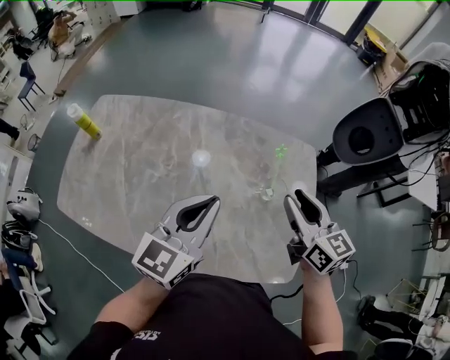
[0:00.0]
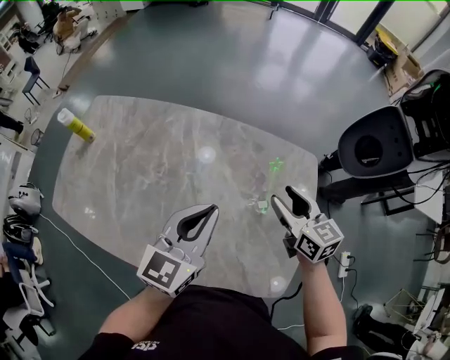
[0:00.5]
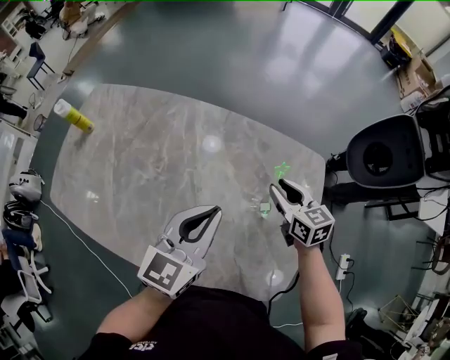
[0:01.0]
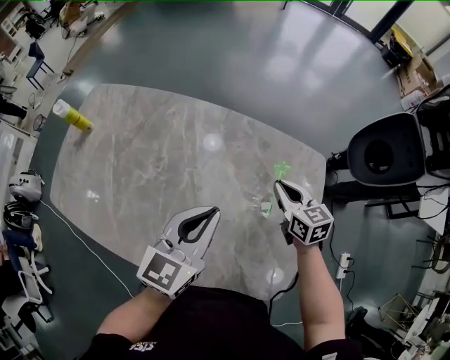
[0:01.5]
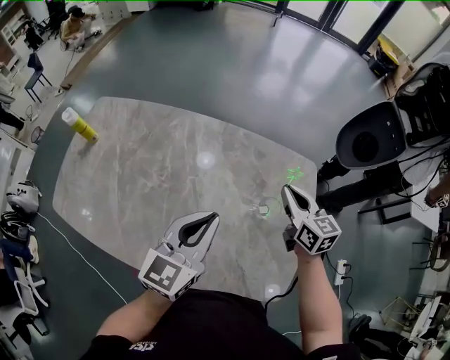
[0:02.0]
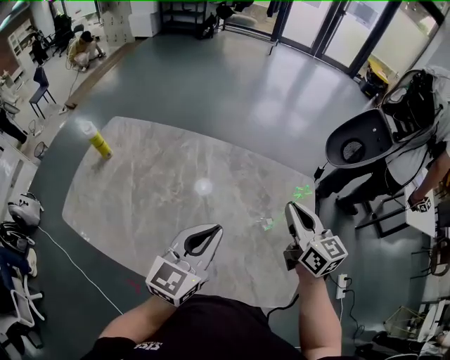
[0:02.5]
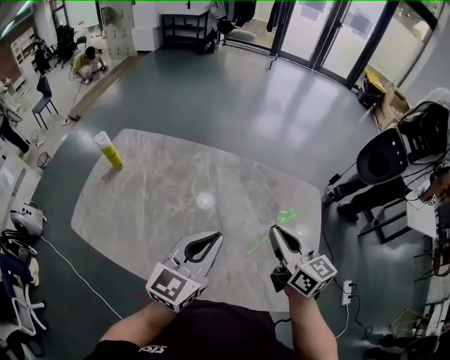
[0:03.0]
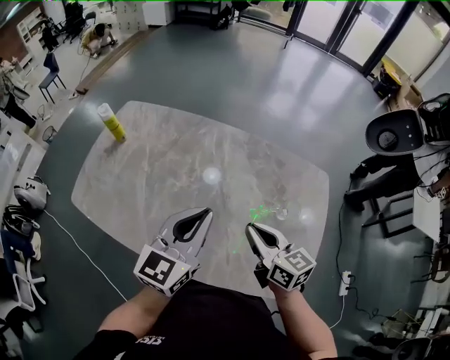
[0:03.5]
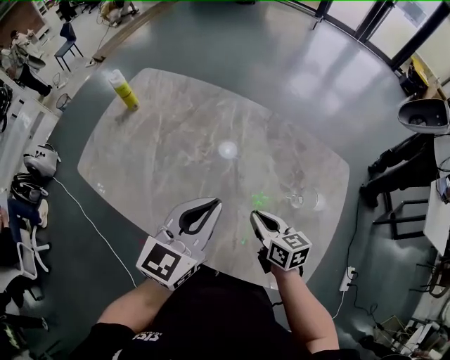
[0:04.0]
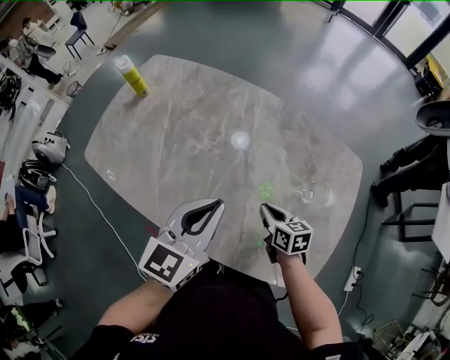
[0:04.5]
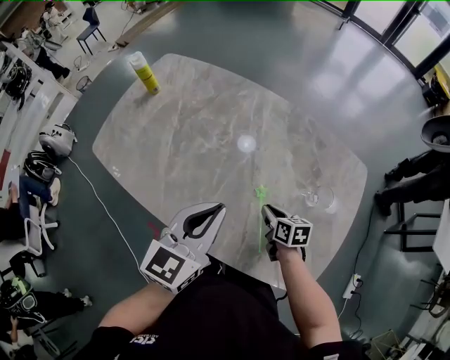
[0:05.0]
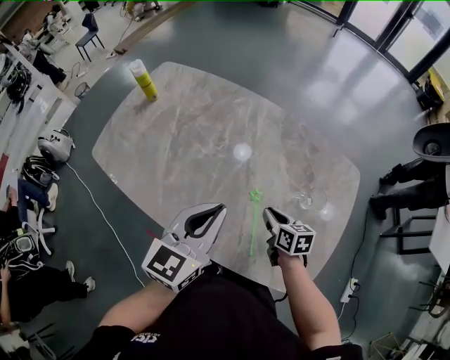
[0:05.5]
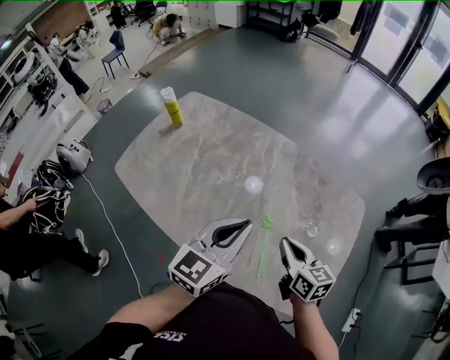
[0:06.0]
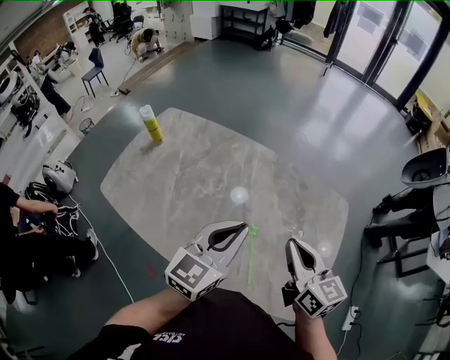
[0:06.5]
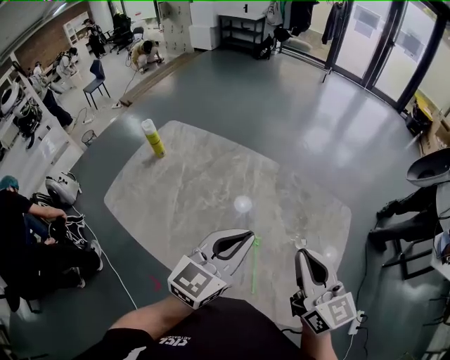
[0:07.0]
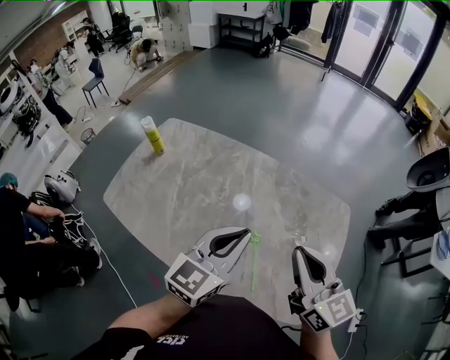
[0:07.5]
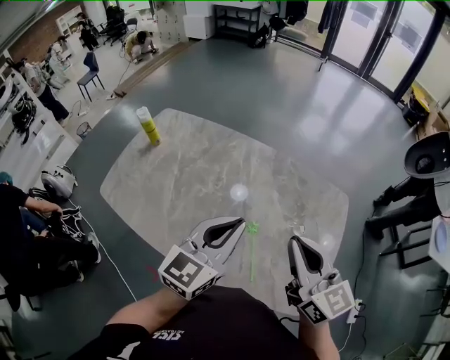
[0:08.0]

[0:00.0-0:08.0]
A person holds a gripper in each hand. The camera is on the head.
0:00.0 to 0:02.0: The right gripper heads forward and downward, covering some 15 cm, and closes.
0:02.0 to 0:04.0: The left gripper heads to the left, covering approximately 10 cm; the right gripper goes about 25 cm to the left and backward, and changes its angle by some 20 degrees.
0:04.0 to 0:06.0: The right gripper shifts some 5 cm upward.
0:06.0 to 0:08.0: The right gripper shifts roughly 20 cm upward, and changes its angle by approximately 30 degrees.

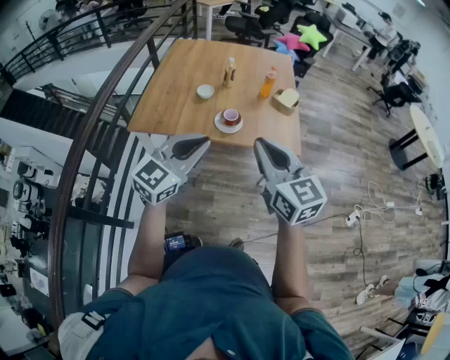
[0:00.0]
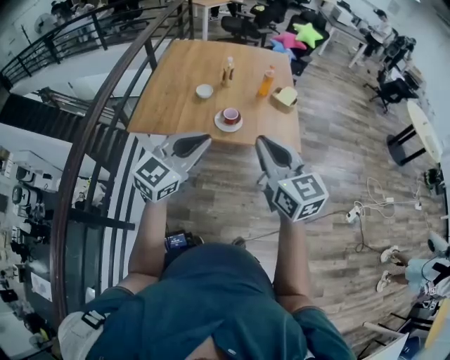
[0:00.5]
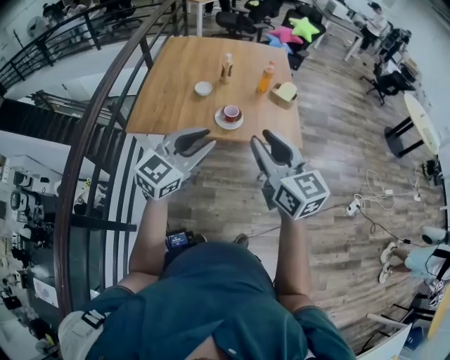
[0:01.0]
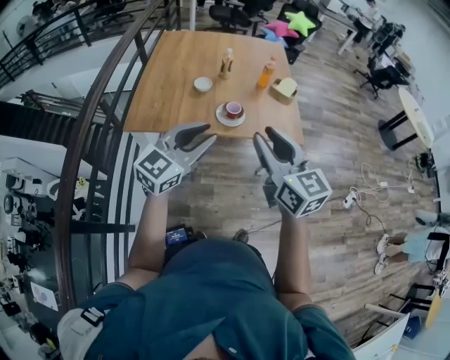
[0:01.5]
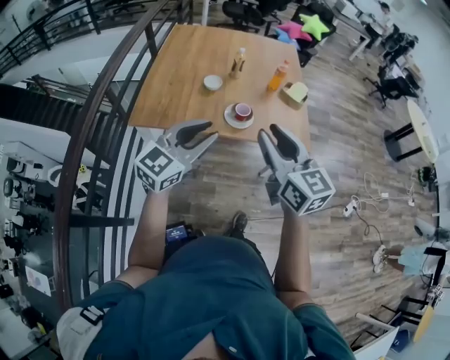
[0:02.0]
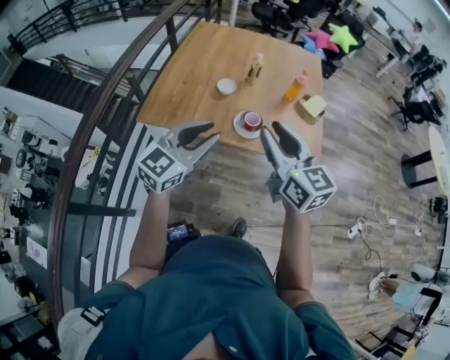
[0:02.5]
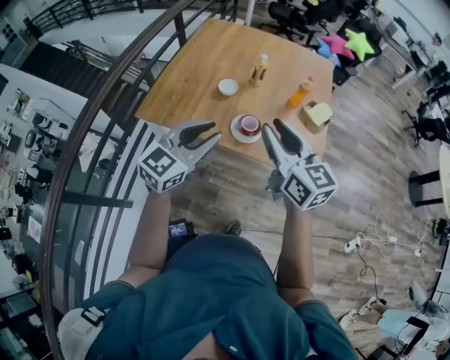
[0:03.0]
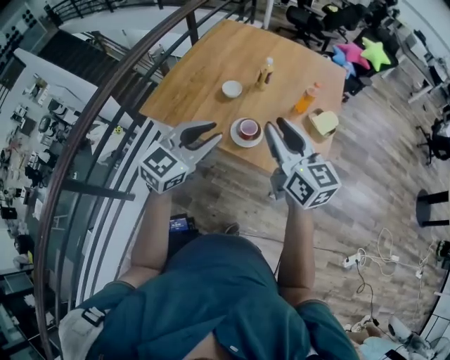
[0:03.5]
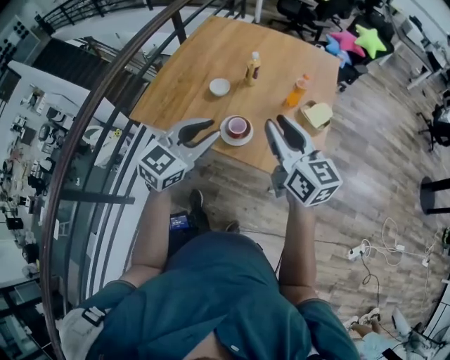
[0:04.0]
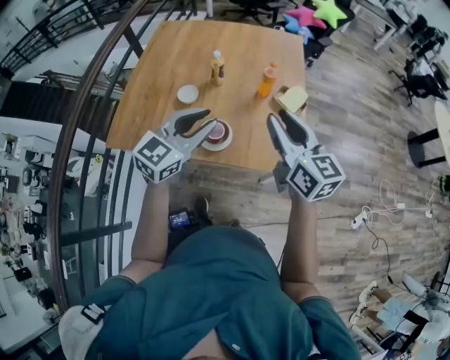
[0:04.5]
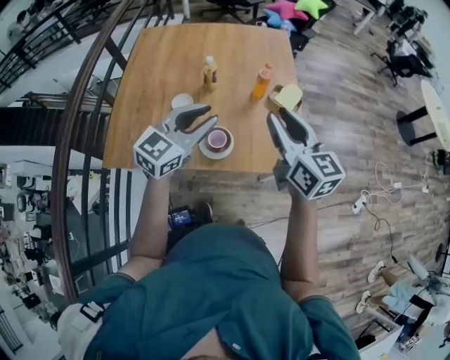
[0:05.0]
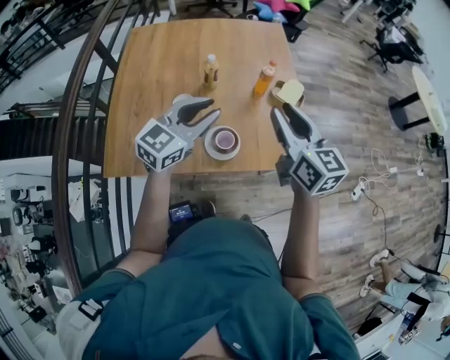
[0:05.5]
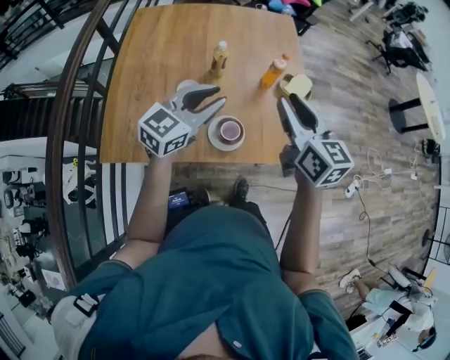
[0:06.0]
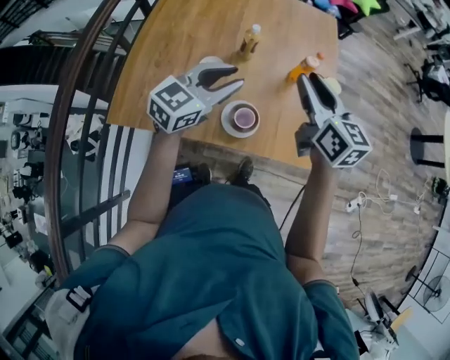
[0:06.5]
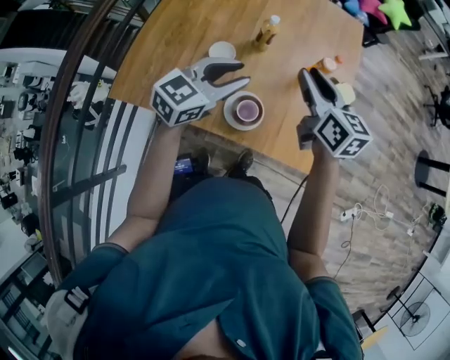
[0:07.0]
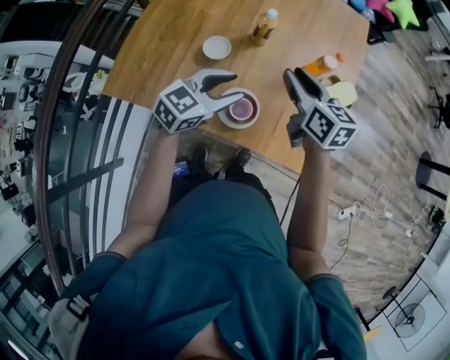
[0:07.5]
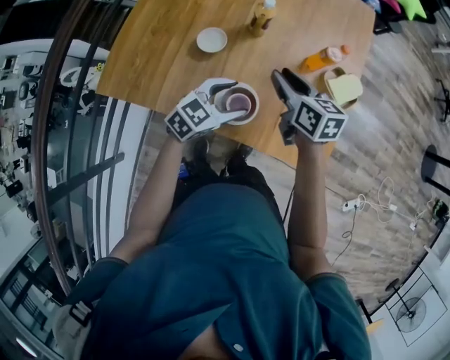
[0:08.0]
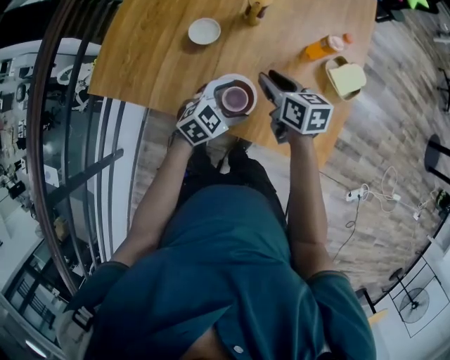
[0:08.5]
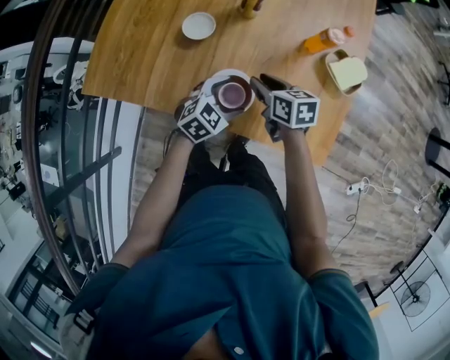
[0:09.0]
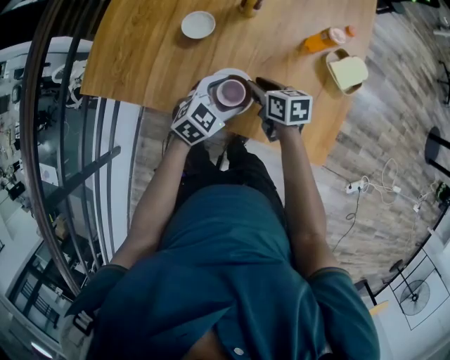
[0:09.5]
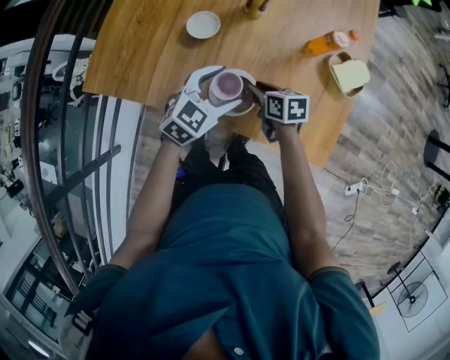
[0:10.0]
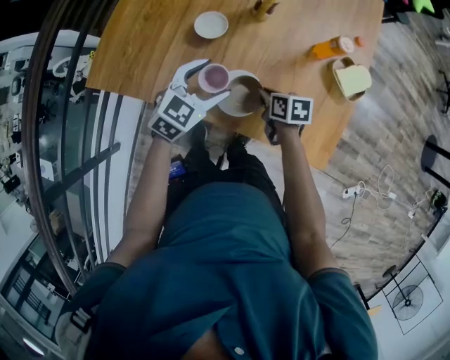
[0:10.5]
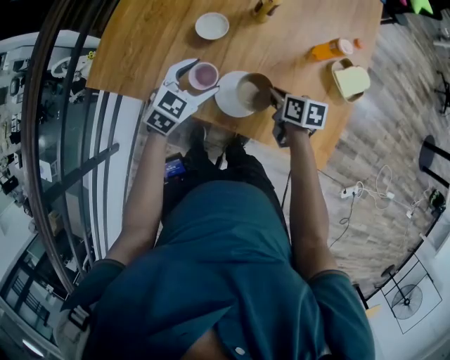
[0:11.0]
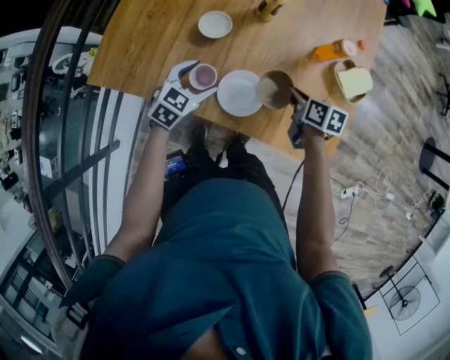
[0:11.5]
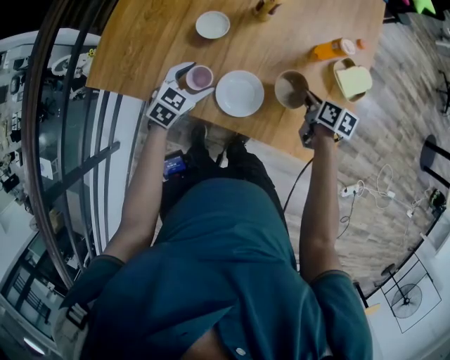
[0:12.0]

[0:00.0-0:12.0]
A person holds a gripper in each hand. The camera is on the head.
0:00.0 to 0:02.0: The left gripper is displaced to the left and forward by roughly 10 cm, while the right gripper moves to the left, roughly 10 cm, and opens up.
0:02.0 to 0:04.0: Both grippers move forward and to the right, about 20 cm.
0:04.0 to 0:06.0: The right gripper moves about 15 cm, and rotates approximately 30 degrees. The left gripper changes place by roughly 20 cm, and swivels approximately 30 degrees.
0:06.0 to 0:08.0: The right gripper is displaced downward and forward by some 25 cm, and rotates about 30 degrees. The left gripper travels downward by about 20 cm, swivels approximately 20 degrees, and opens.
0:08.0 to 0:10.0: The left gripper moves about 10 cm downward and comes back; the right gripper goes about 20 cm downward, and rotates about 20 degrees.
0:10.0 to 0:12.0: The left gripper heads to the left and downward, covering some 15 cm. The right gripper heads to the right, covering roughly 15 cm, and turns by approximately 20 degrees.

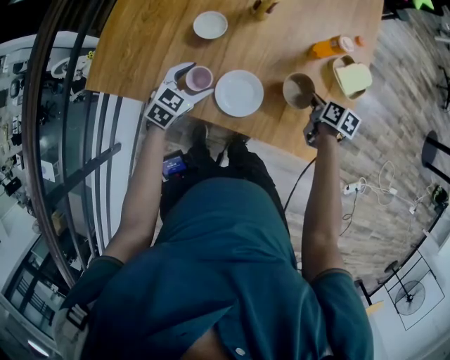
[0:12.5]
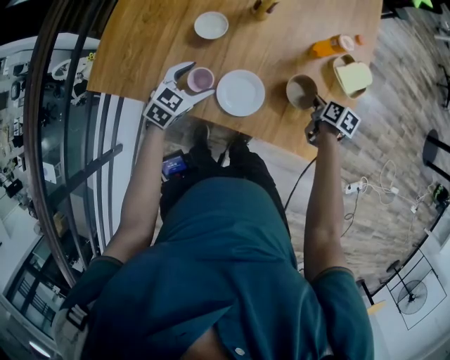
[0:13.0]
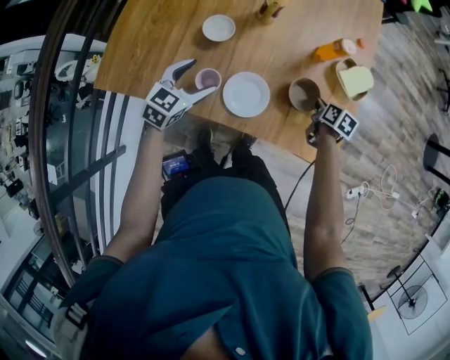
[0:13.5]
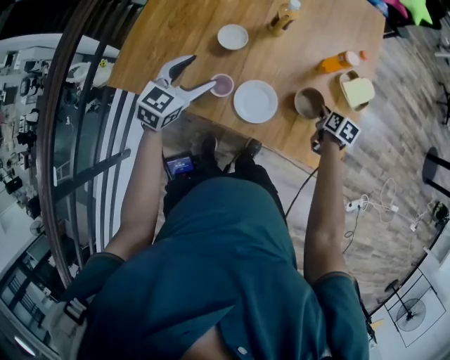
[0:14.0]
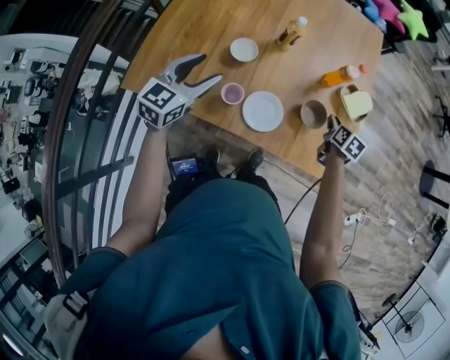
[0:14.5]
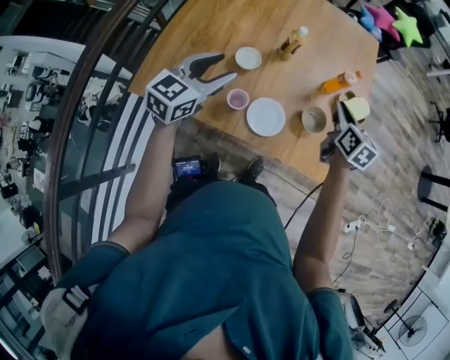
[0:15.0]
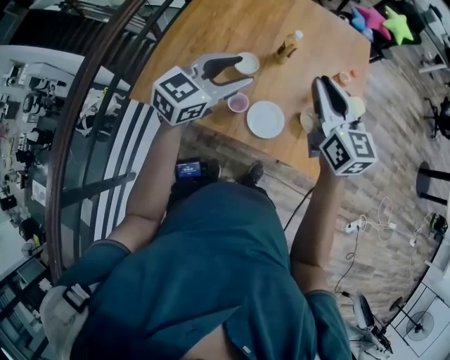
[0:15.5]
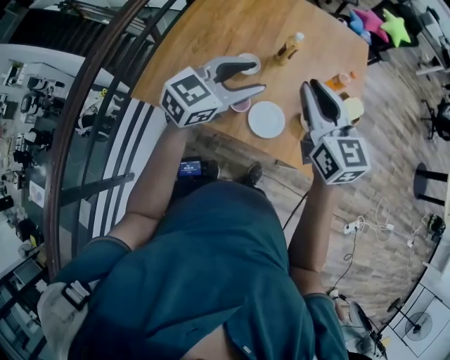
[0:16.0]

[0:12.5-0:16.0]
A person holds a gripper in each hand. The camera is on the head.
0:12.5 to 0:14.5: The right gripper heads upward, covering some 5 cm. Meanwhile the left gripper is displaced upward by approximately 20 cm, and changes its angle by roughly 20 degrees.
0:14.5 to 0:16.0: The left gripper moves upward and to the right, approximately 15 cm, while the right gripper moves upward and to the left, approximately 40 cm, and tips its fingers upward by about 40 degrees.

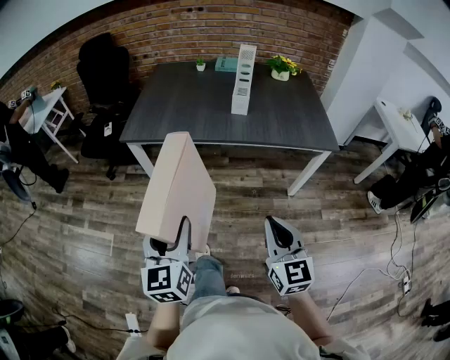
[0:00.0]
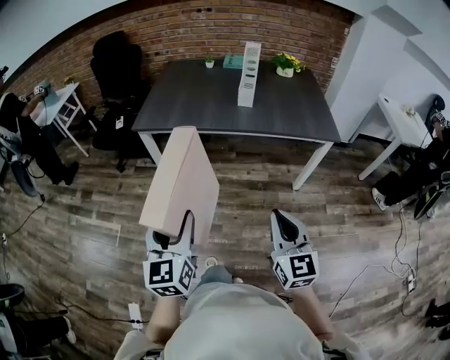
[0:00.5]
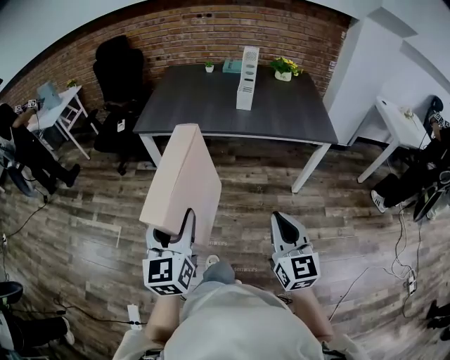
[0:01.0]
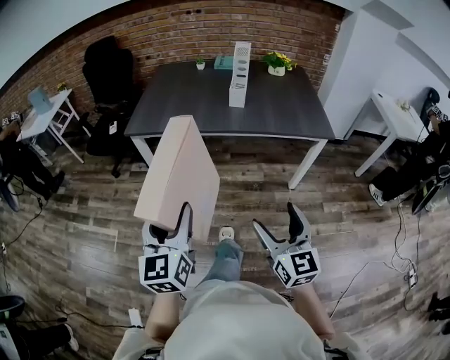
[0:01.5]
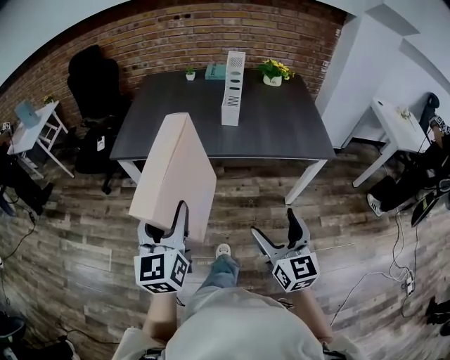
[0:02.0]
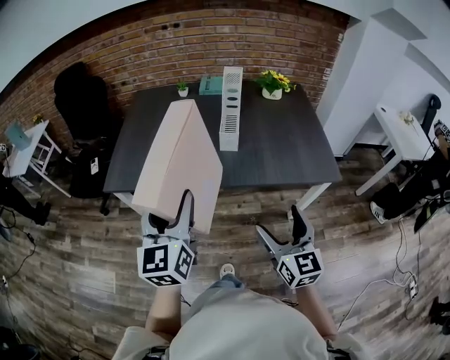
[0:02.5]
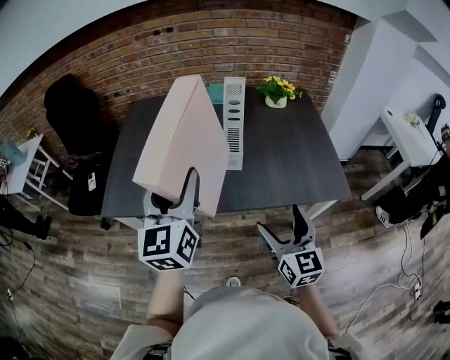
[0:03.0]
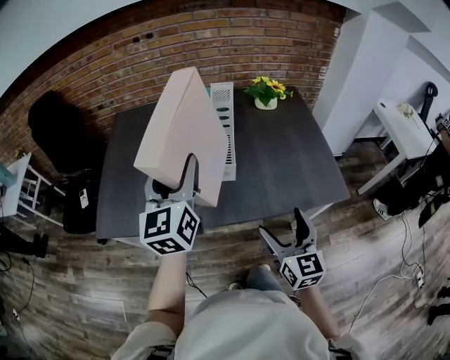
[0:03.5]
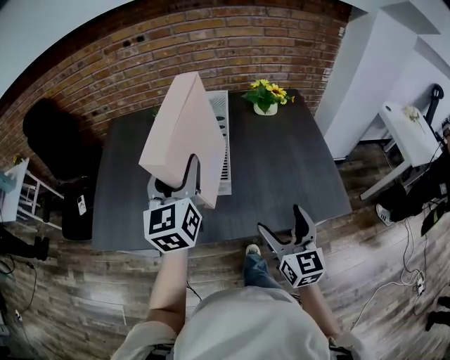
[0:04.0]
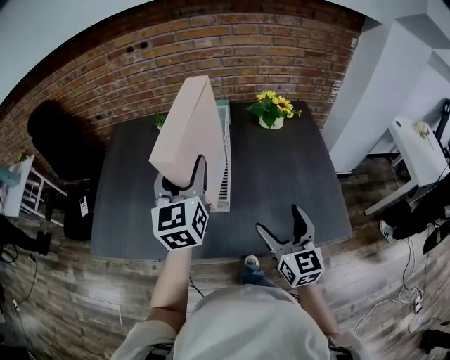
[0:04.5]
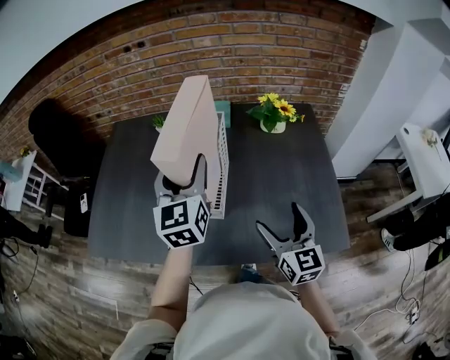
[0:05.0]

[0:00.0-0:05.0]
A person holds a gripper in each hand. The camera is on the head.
0:00.0 to 0:02.5: The left gripper shifts roughly 25 cm forward. Meanwhile the right gripper is displaced forward and to the right by approximately 25 cm, and opens its fingers.
0:02.5 to 0:05.0: Both grippers travel together forward, roughly 35 cm.
